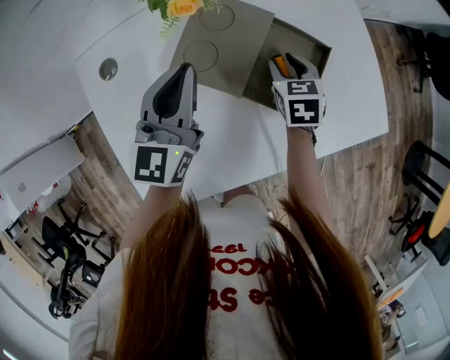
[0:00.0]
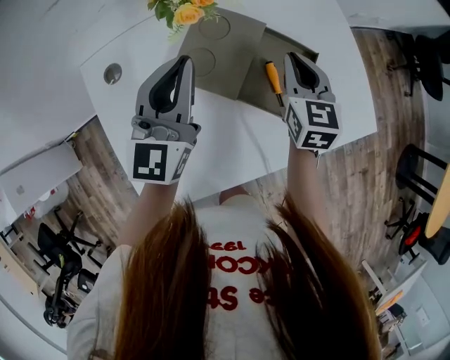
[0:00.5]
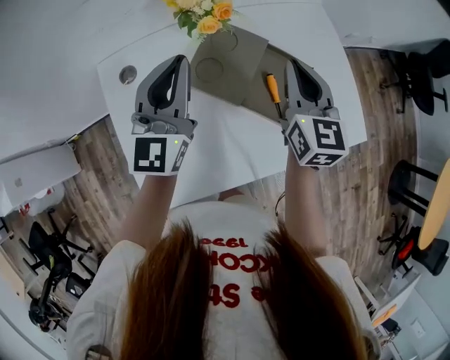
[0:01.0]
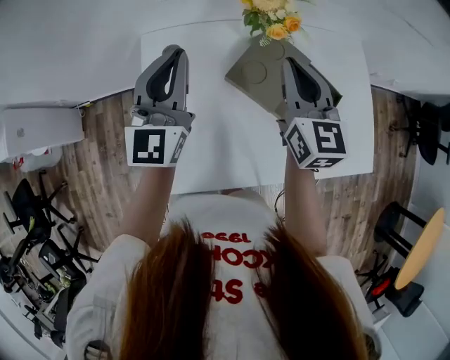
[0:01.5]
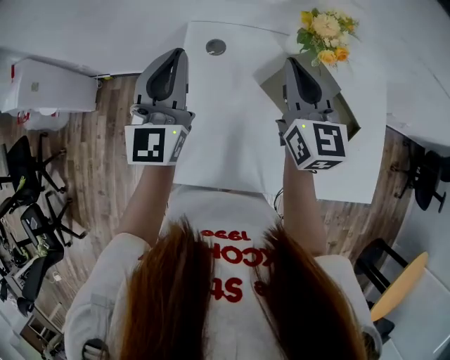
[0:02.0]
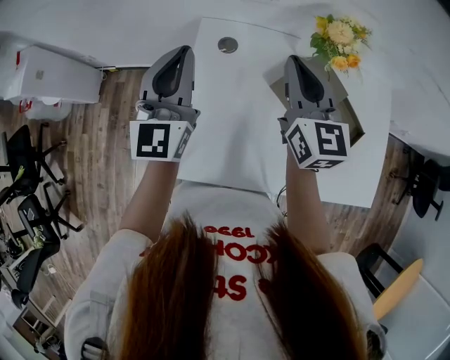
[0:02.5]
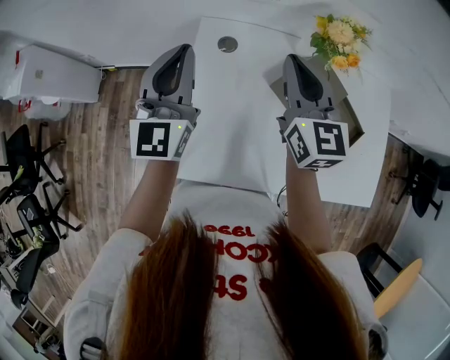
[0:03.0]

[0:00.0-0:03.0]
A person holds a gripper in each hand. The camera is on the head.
0:00.0 to 0:01.5: The right gripper travels upward and to the left by roughly 30 cm, points its fingers some 40 degrees further upward, and closes its fingers, while the left gripper moves to the left and upward, about 20 cm, and turns by approximately 30 degrees.
0:01.5 to 0:03.0: The grippers both shift to the left by about 15 cm.

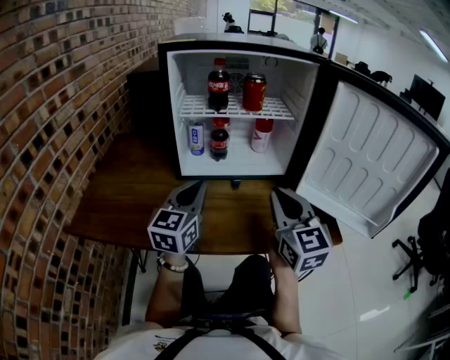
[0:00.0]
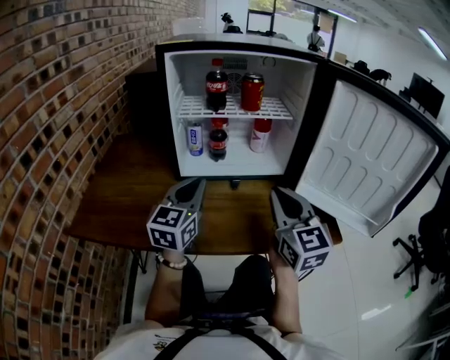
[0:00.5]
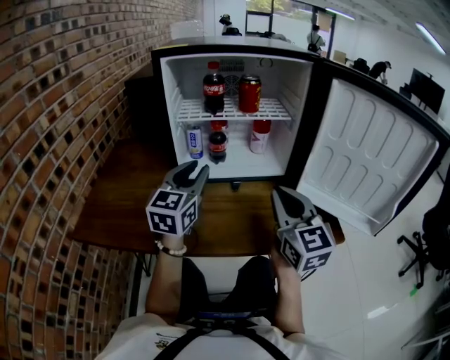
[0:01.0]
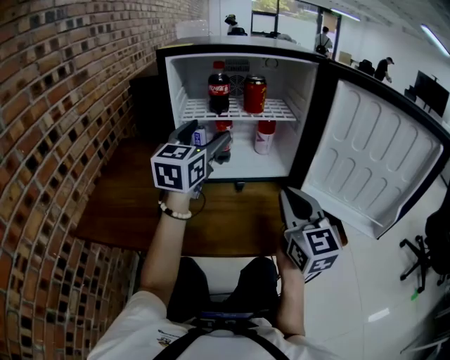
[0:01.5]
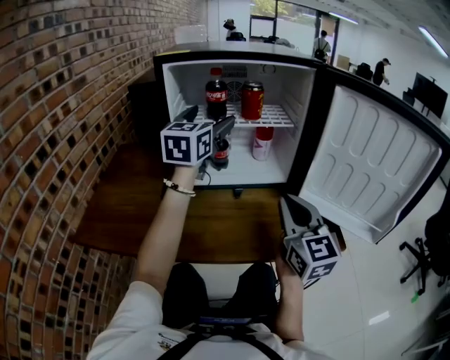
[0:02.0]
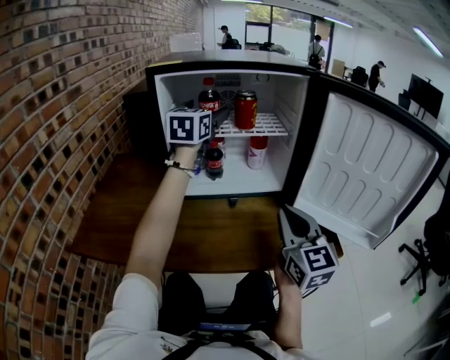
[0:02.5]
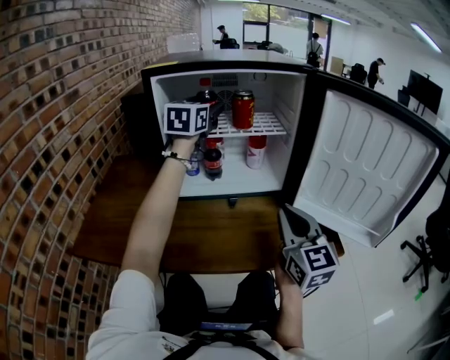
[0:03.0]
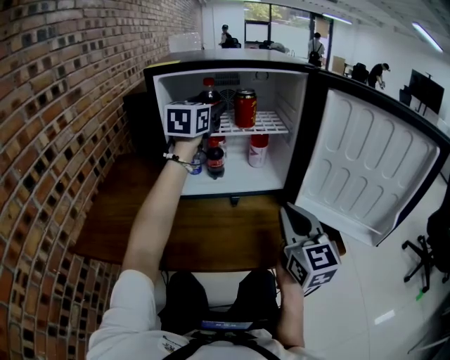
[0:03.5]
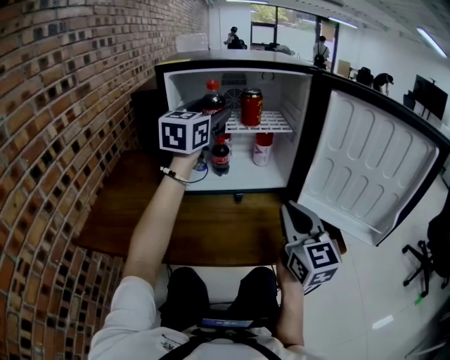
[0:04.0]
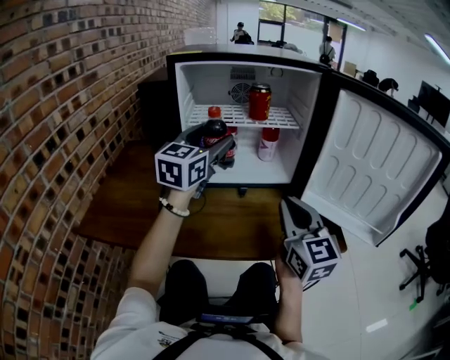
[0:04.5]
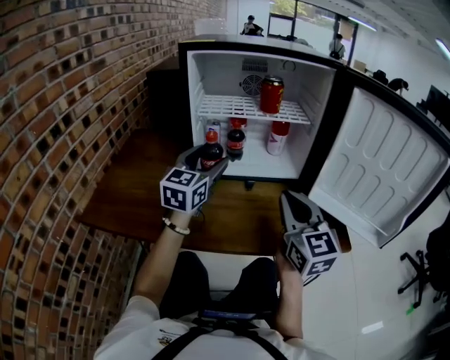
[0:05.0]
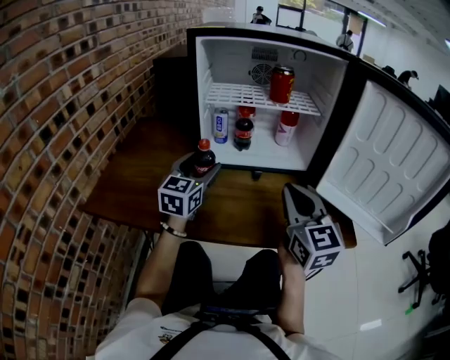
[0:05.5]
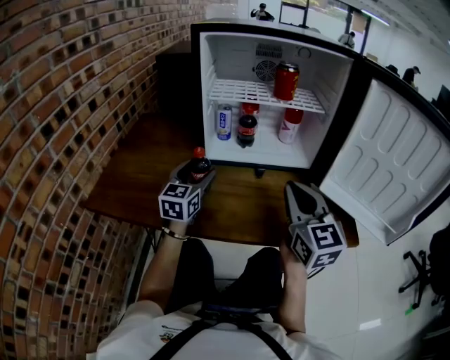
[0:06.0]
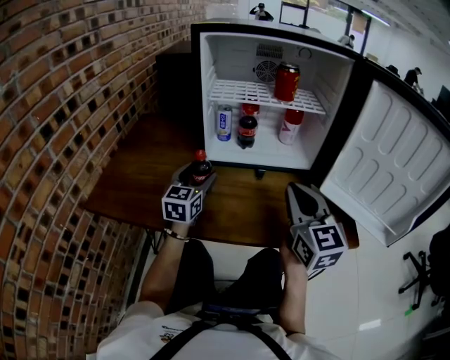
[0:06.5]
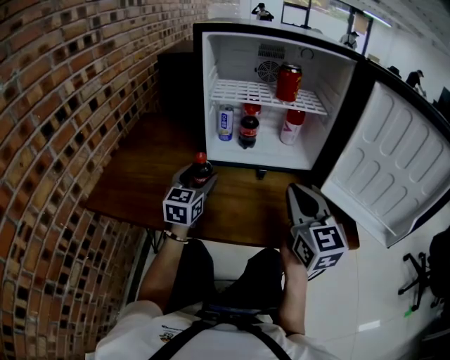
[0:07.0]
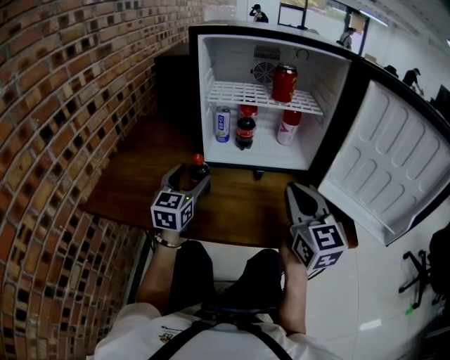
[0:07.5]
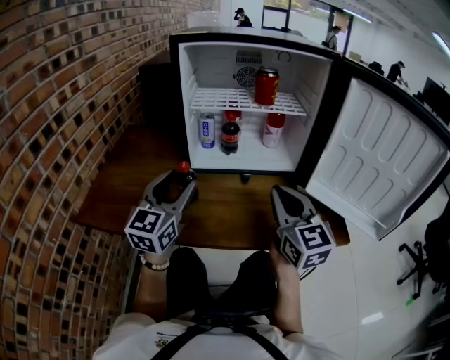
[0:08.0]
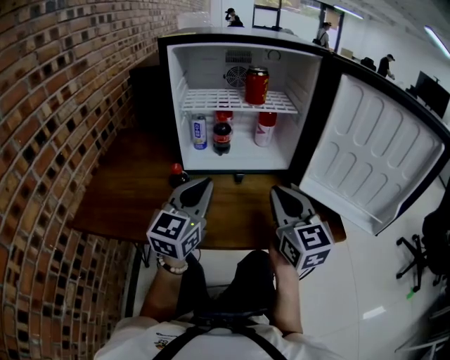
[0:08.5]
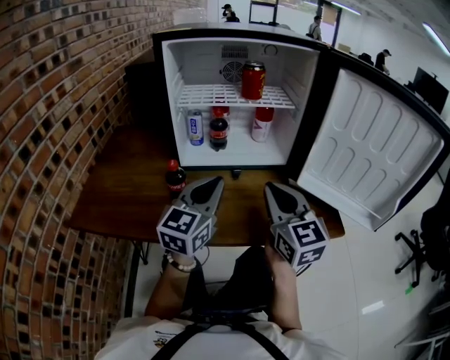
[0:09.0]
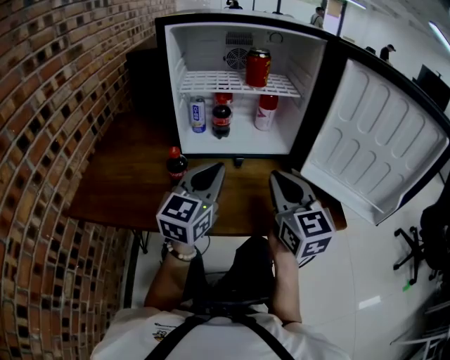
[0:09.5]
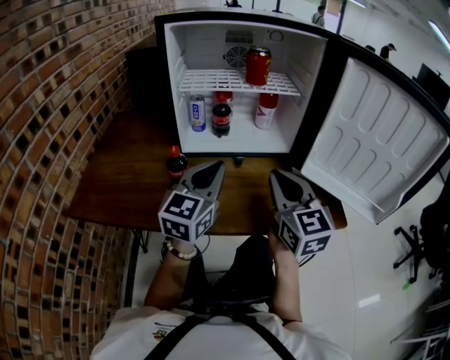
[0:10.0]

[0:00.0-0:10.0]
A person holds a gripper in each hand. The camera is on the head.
0:00.0 to 0:02.0: The left gripper goes about 20 cm upward and forward, and opens.
0:02.0 to 0:04.0: The left gripper moves some 10 cm forward and comes back.
0:04.0 to 0:06.0: The right gripper heads to the left, covering some 5 cm; the left gripper goes roughly 30 cm downward and to the left.
0:06.0 to 0:08.0: The left gripper shifts some 10 cm upward and backward.
0:08.0 to 0:10.0: The left gripper shifts roughly 10 cm to the right, and closes.

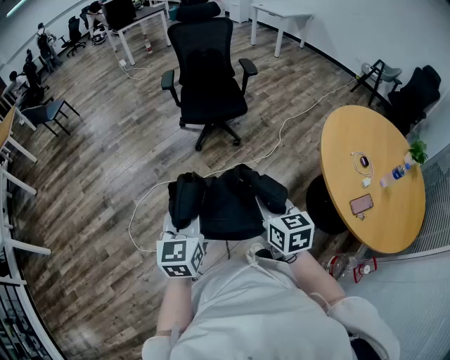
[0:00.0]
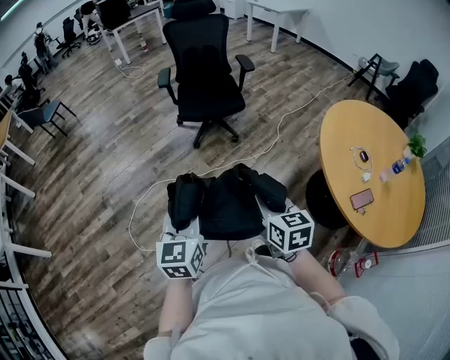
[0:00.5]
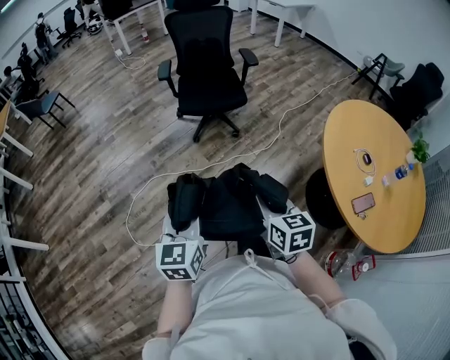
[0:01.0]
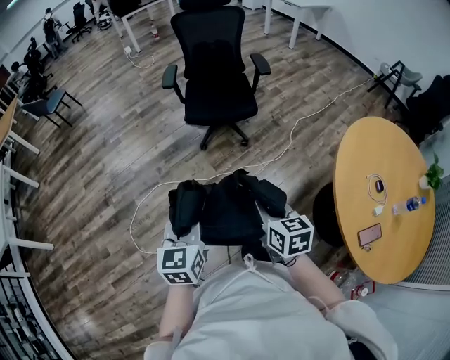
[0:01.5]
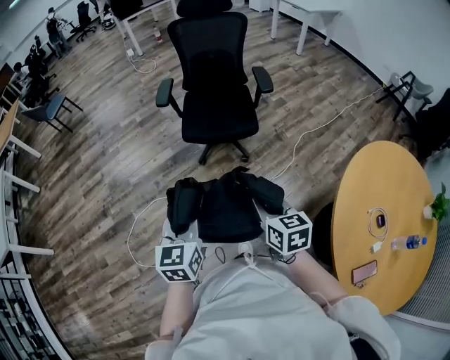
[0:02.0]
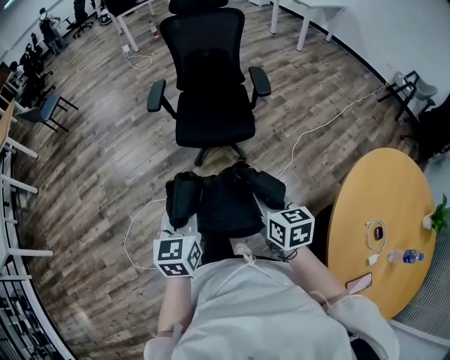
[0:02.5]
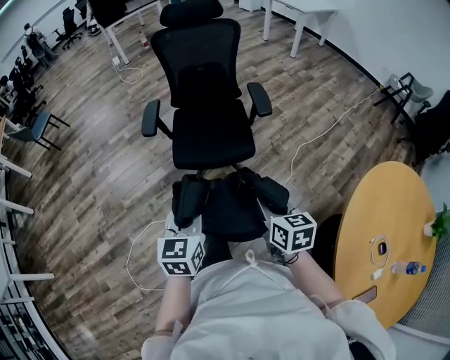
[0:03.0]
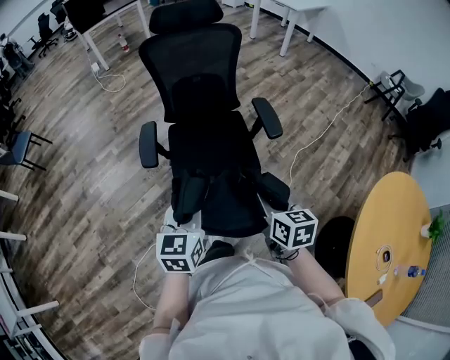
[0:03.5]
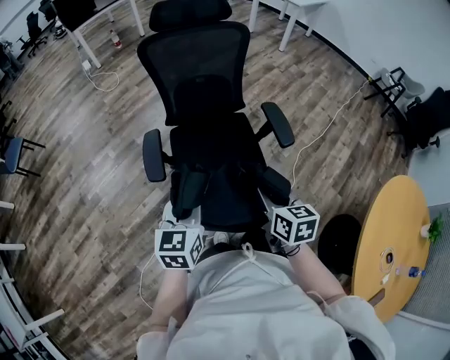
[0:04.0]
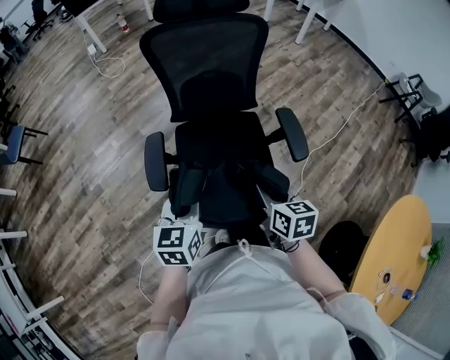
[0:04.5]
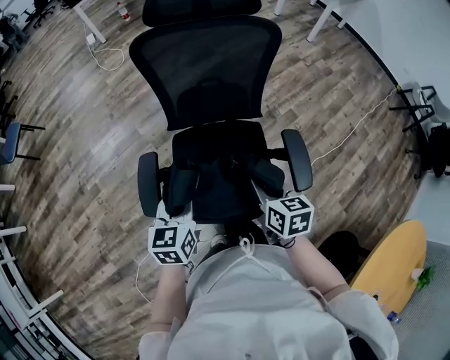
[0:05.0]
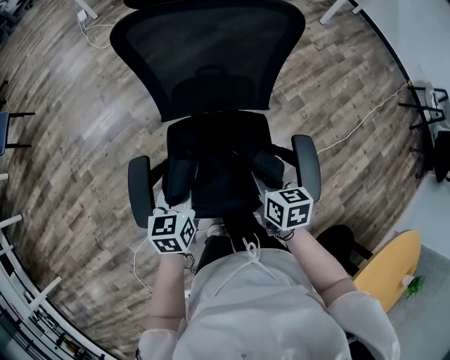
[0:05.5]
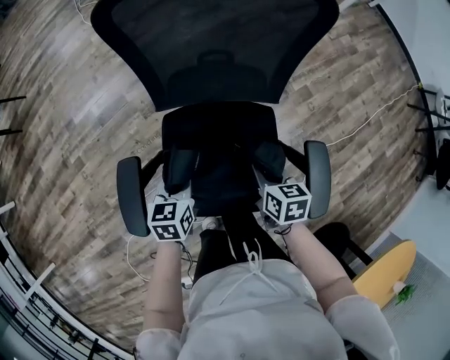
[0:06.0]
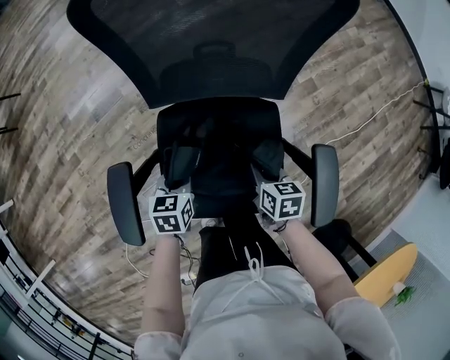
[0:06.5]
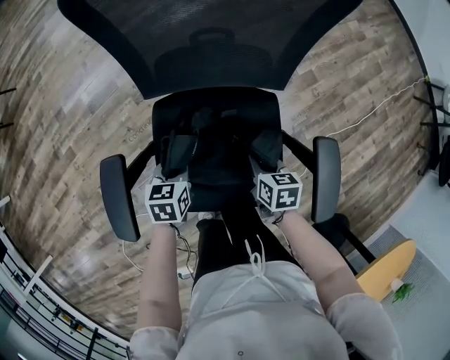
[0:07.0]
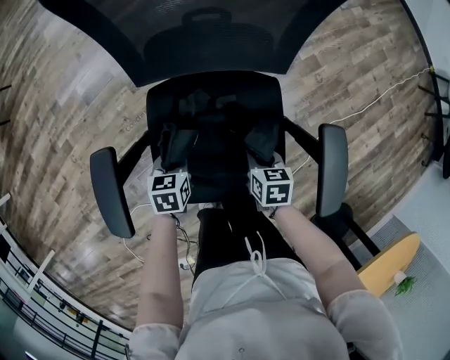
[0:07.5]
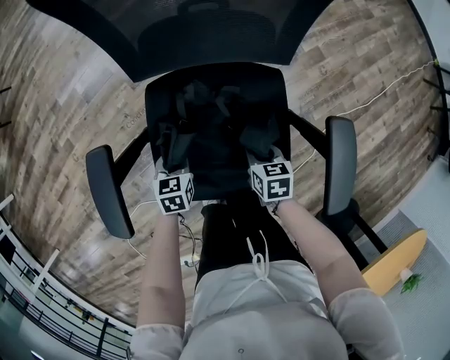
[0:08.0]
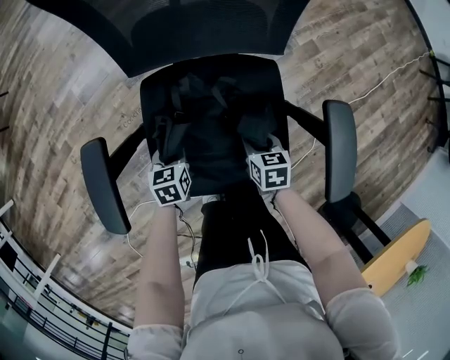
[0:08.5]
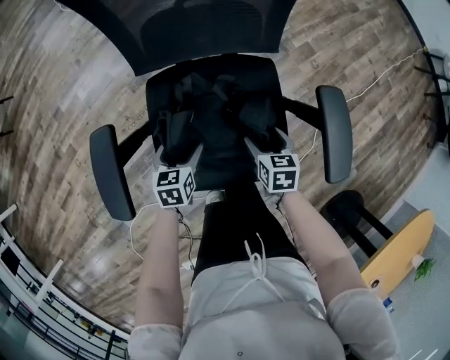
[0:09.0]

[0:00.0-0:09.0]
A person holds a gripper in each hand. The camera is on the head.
0:00.0 to 0:02.0: Both grippers move forward, roughly 30 cm.
0:02.0 to 0:04.5: Both grippers are carried forward, approximately 60 cm.
0:04.5 to 0:07.0: The grippers both shift downward and forward by about 40 cm. The left gripper turns by approximately 30 degrees, while the right gripper swivels about 20 degrees.
0:07.0 to 0:09.0: The right gripper moves backward, approximately 10 cm, and opens. Meanwhile the left gripper heads backward and downward, covering some 10 cm, and opens up.

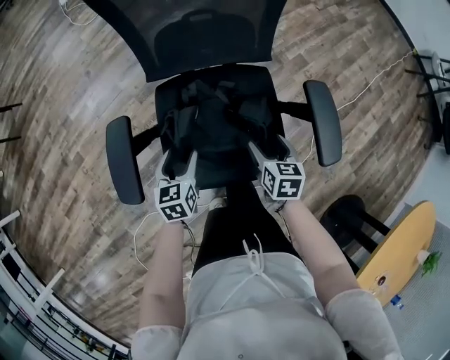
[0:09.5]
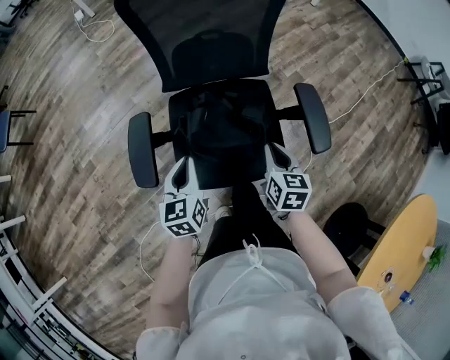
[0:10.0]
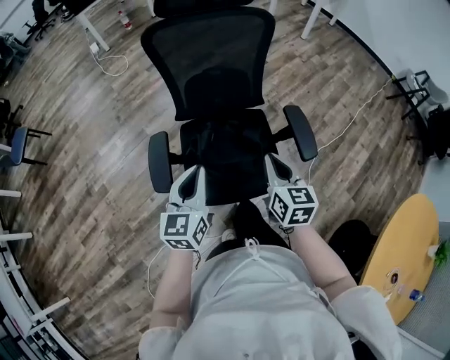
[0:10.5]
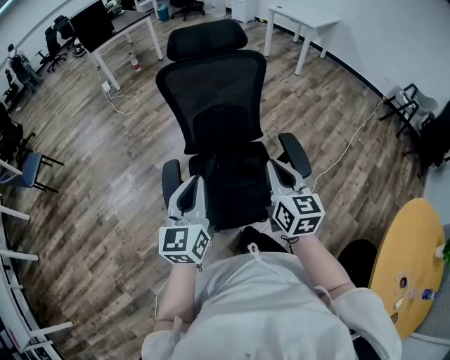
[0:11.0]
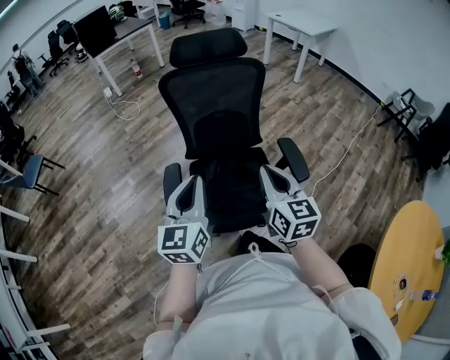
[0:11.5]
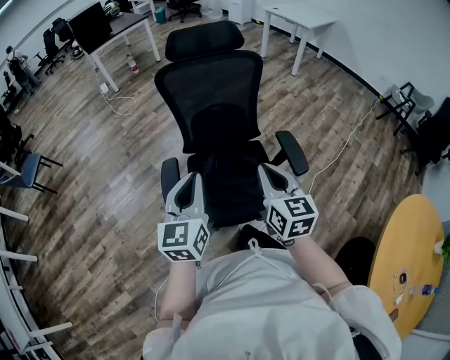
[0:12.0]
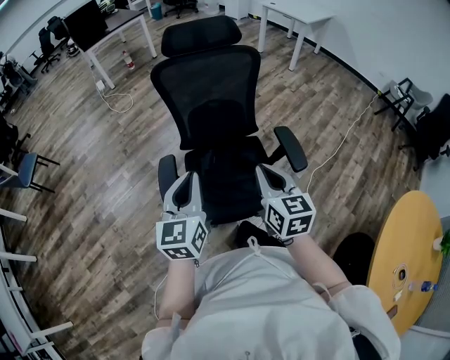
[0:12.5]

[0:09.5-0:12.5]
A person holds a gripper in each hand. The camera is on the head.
0:09.5 to 0:11.0: Both grippers move upward, approximately 40 cm. The left gripper tilts its fingers roughly 40 degrees upward, and closes its fingers, while the right gripper tips its fingers upward by approximately 40 degrees, and closes.
0:11.0 to 0:12.5: The grippers make only small movements.

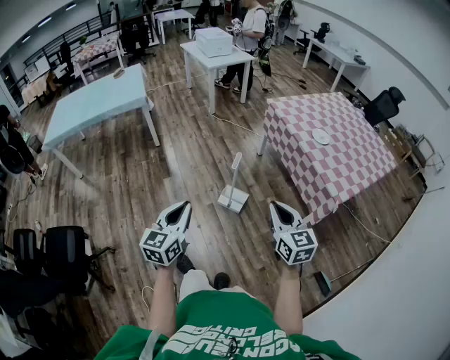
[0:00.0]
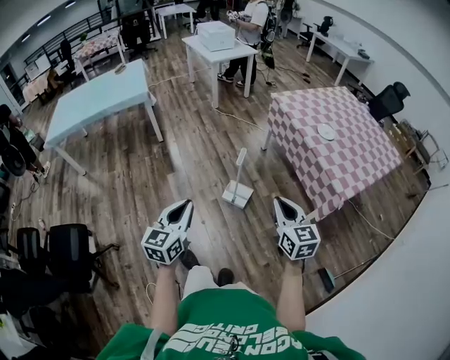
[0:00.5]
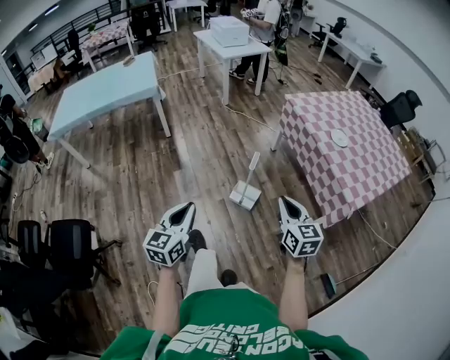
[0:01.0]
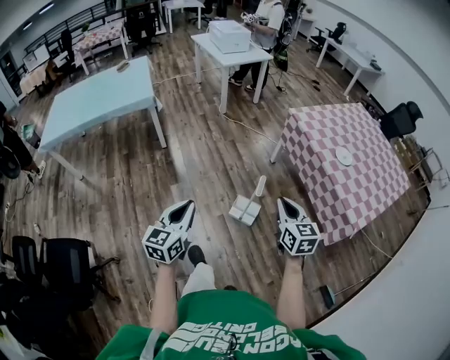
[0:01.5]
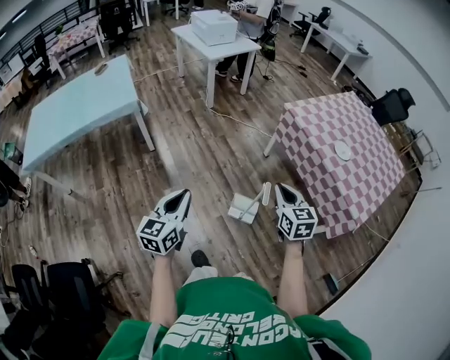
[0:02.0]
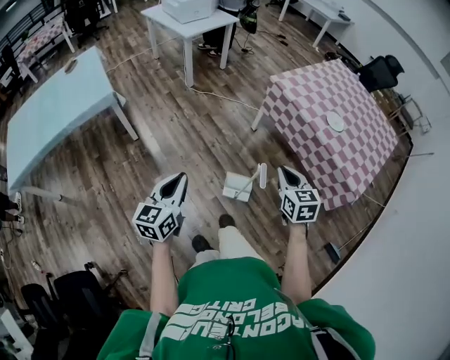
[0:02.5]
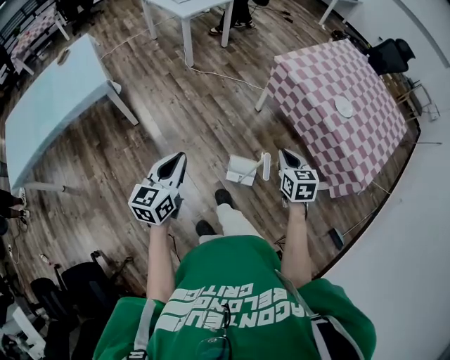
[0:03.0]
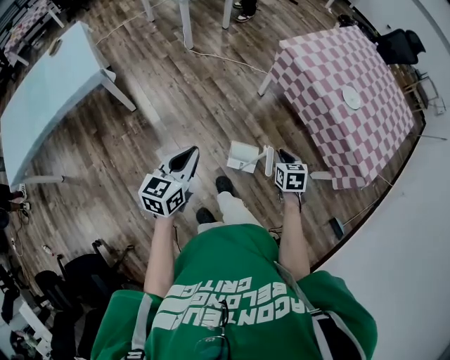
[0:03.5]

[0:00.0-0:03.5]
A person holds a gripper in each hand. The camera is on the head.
0:00.0 to 0:02.0: Both grippers move forward and to the left, some 35 cm.
0:02.0 to 0:03.5: The left gripper heads forward and downward, covering approximately 15 cm. The right gripper is displaced downward and forward by some 20 cm, and rotates roughly 30 degrees.
